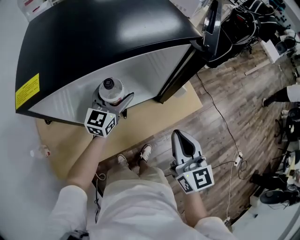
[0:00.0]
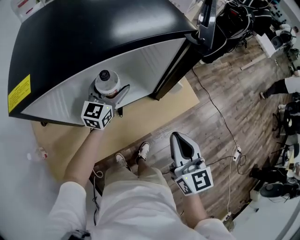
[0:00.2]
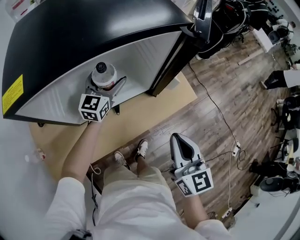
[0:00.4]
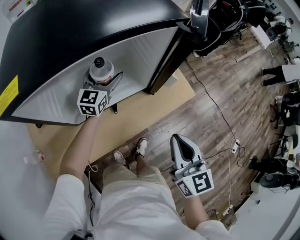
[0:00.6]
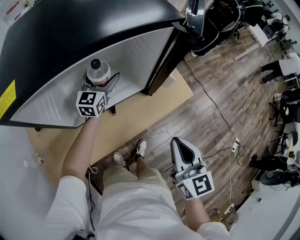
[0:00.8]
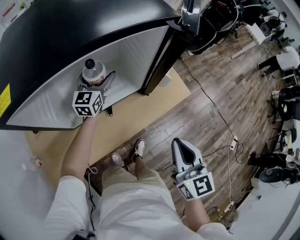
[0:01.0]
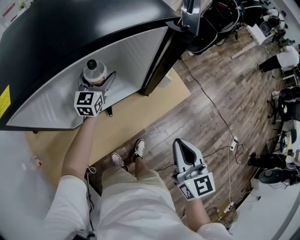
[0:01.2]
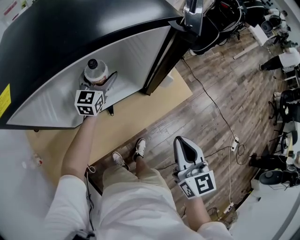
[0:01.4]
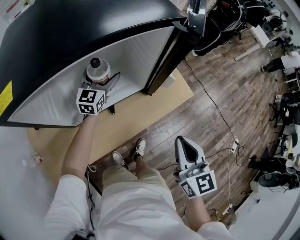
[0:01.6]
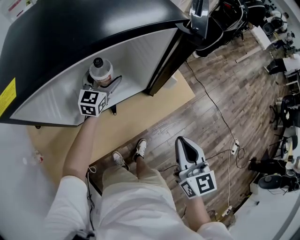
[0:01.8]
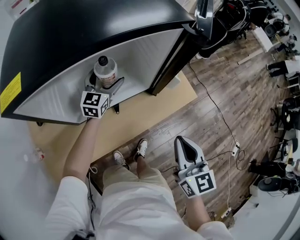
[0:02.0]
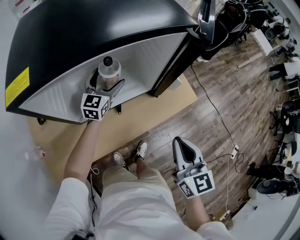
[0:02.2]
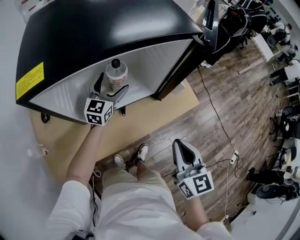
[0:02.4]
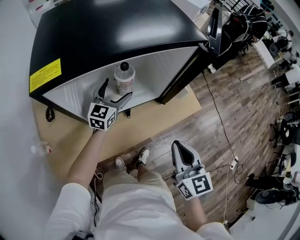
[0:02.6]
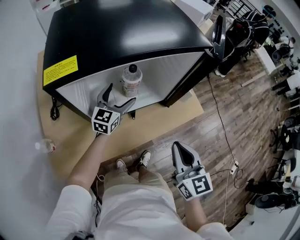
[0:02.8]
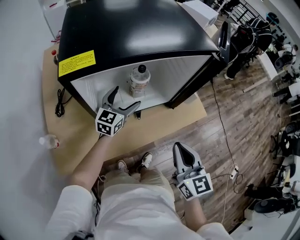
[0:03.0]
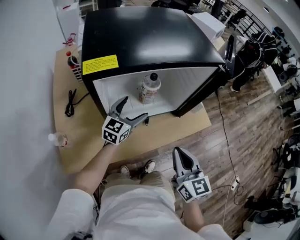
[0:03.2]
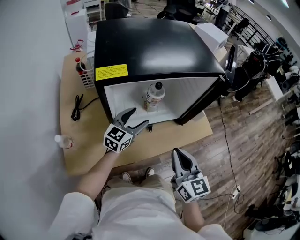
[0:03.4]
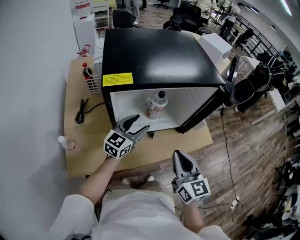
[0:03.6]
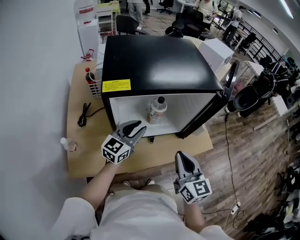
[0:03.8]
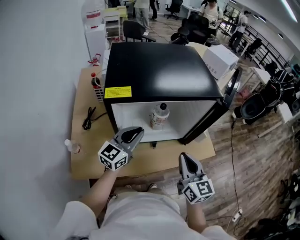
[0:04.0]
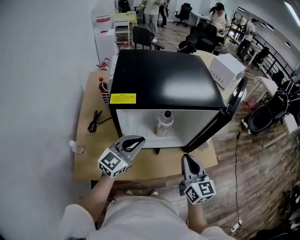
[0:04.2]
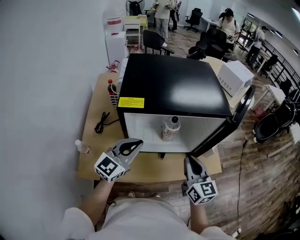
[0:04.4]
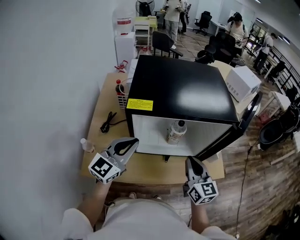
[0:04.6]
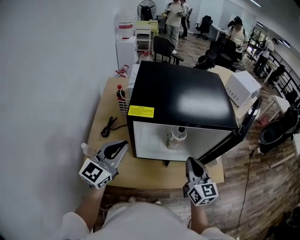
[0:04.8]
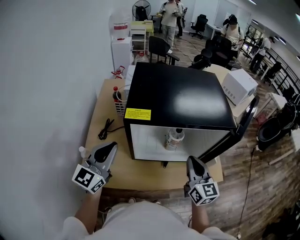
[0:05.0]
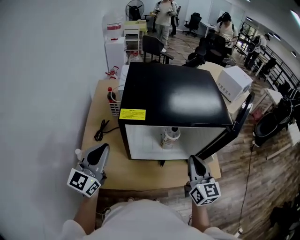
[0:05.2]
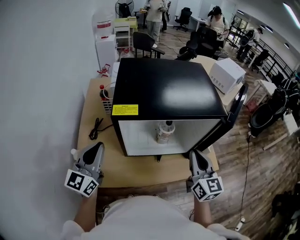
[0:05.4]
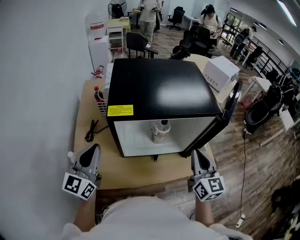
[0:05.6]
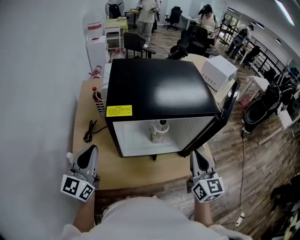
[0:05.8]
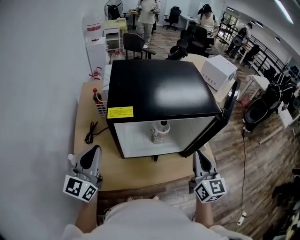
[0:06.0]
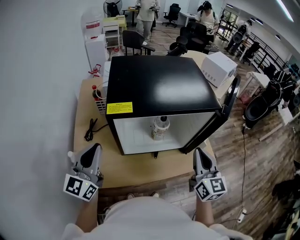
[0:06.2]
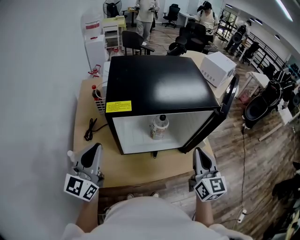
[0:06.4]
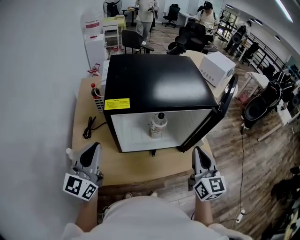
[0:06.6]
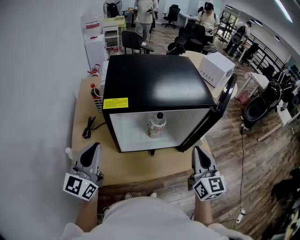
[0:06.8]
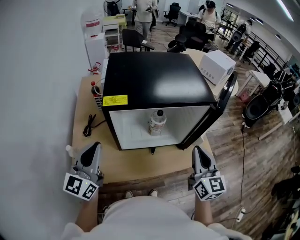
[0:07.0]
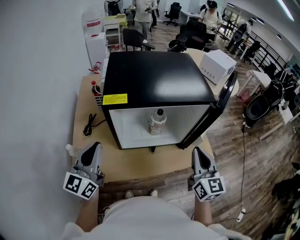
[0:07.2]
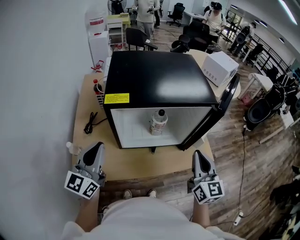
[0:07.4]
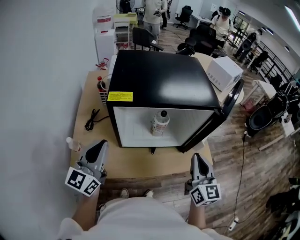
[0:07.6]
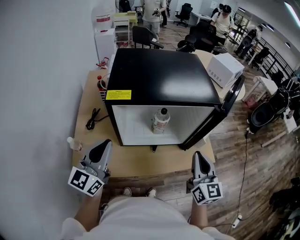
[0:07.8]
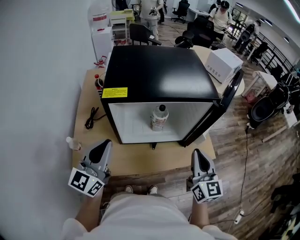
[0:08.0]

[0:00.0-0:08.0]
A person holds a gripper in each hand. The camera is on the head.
0:00.0 to 0:01.6: The left gripper goes roughly 10 cm forward. Meanwhile the right gripper moves to the right, about 5 cm.
0:01.6 to 0:03.2: The left gripper travels backward and to the left by roughly 15 cm. The right gripper is displaced to the left by roughly 10 cm.
0:03.2 to 0:04.8: The right gripper shifts roughly 15 cm forward and upward, while the left gripper travels upward, to the left and backward by approximately 25 cm, changes its angle by approximately 20 degrees, and closes its fingers.
0:04.8 to 0:06.4: The right gripper travels to the right and upward by about 10 cm.
0:06.4 to 0:08.0: The left gripper heads to the right, covering roughly 5 cm.

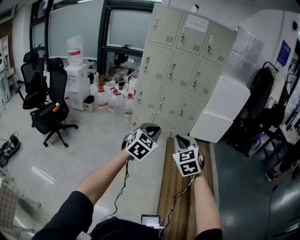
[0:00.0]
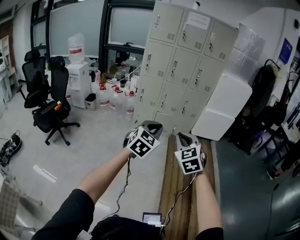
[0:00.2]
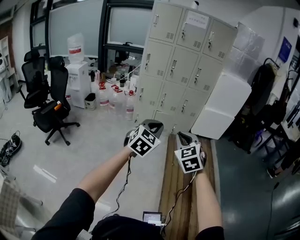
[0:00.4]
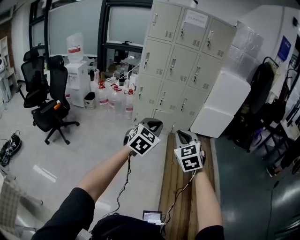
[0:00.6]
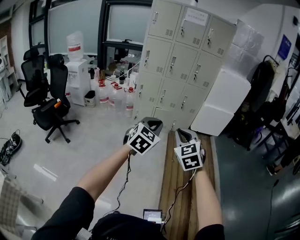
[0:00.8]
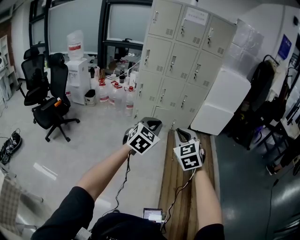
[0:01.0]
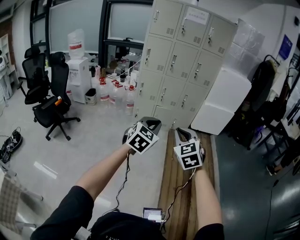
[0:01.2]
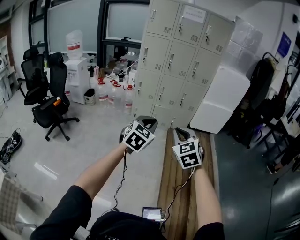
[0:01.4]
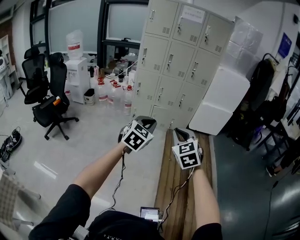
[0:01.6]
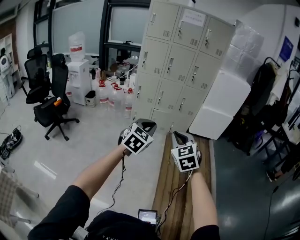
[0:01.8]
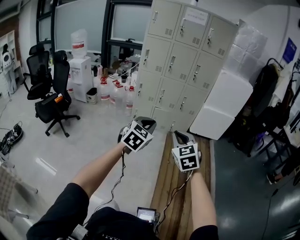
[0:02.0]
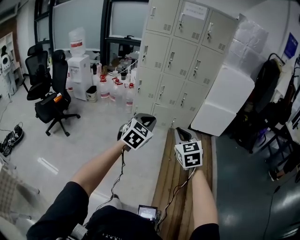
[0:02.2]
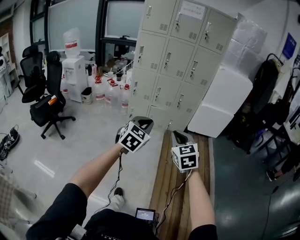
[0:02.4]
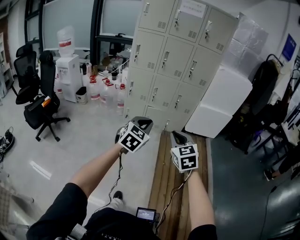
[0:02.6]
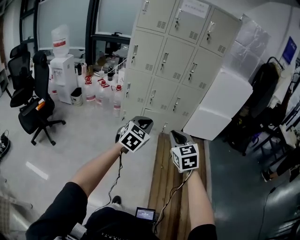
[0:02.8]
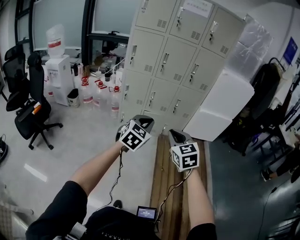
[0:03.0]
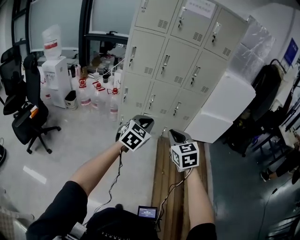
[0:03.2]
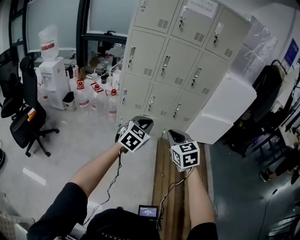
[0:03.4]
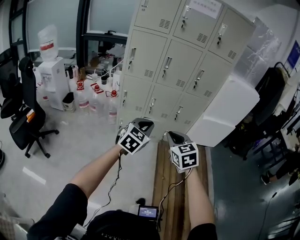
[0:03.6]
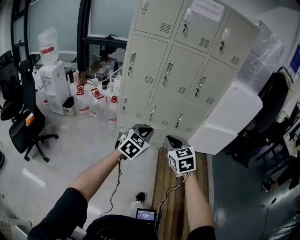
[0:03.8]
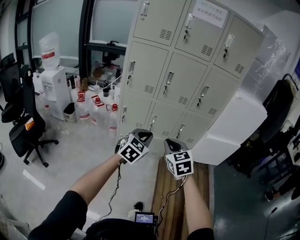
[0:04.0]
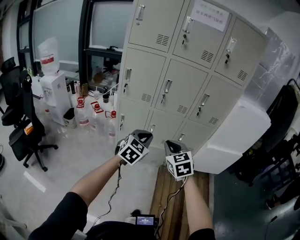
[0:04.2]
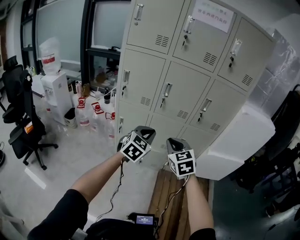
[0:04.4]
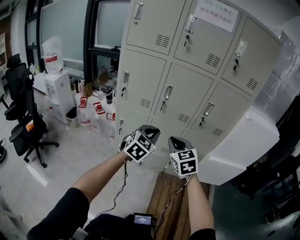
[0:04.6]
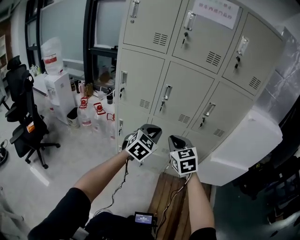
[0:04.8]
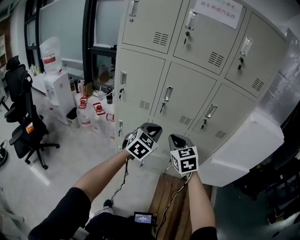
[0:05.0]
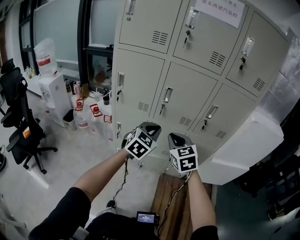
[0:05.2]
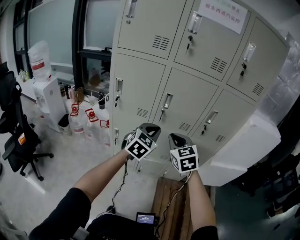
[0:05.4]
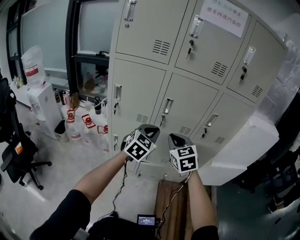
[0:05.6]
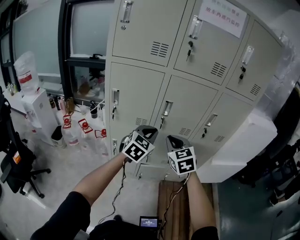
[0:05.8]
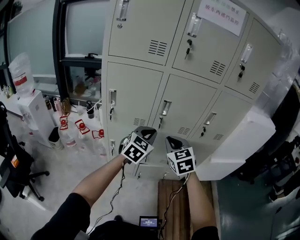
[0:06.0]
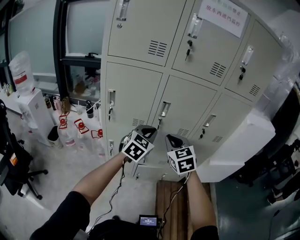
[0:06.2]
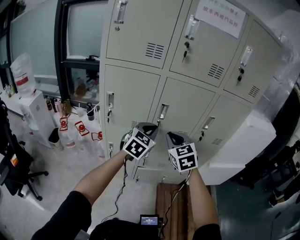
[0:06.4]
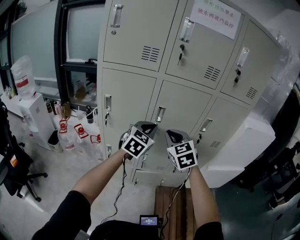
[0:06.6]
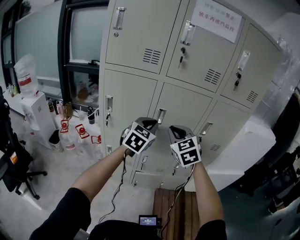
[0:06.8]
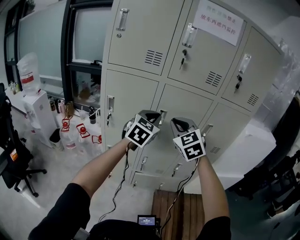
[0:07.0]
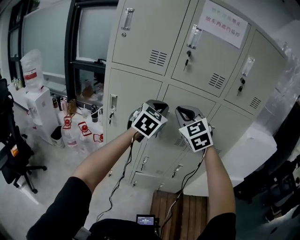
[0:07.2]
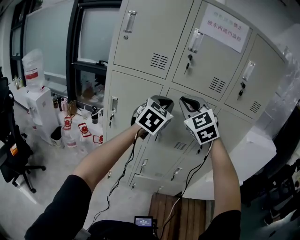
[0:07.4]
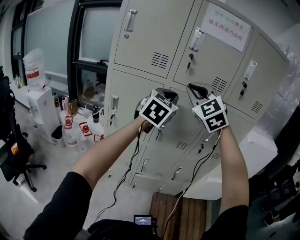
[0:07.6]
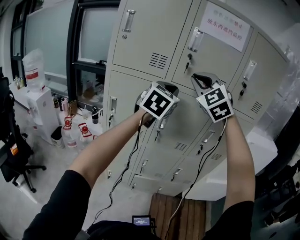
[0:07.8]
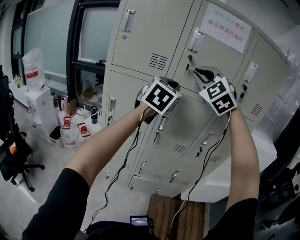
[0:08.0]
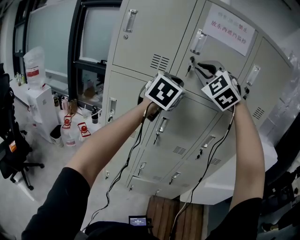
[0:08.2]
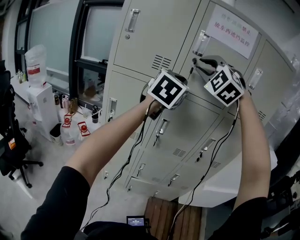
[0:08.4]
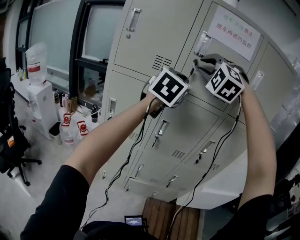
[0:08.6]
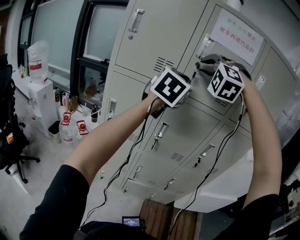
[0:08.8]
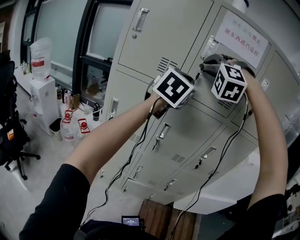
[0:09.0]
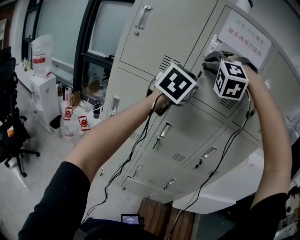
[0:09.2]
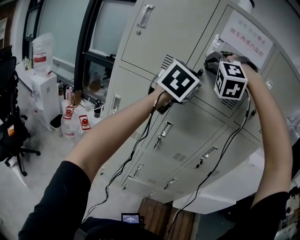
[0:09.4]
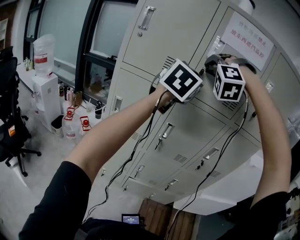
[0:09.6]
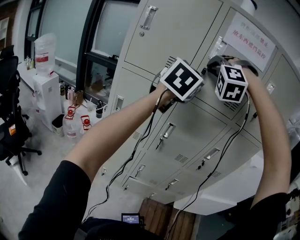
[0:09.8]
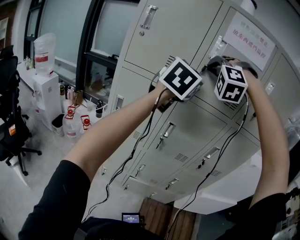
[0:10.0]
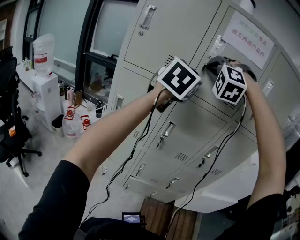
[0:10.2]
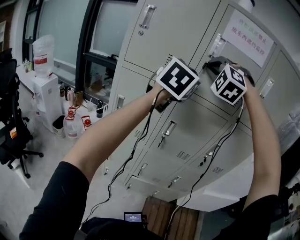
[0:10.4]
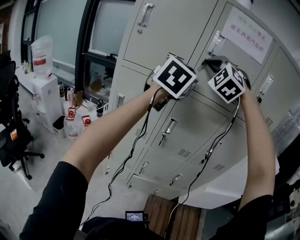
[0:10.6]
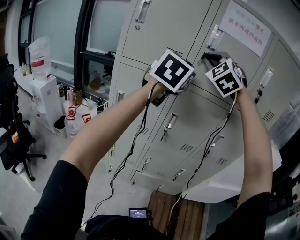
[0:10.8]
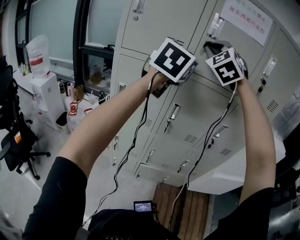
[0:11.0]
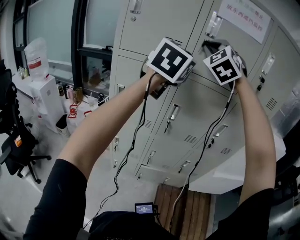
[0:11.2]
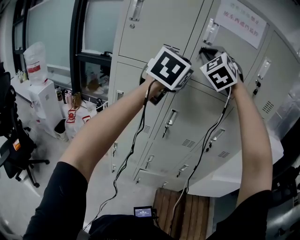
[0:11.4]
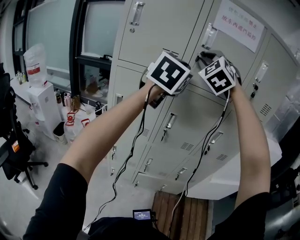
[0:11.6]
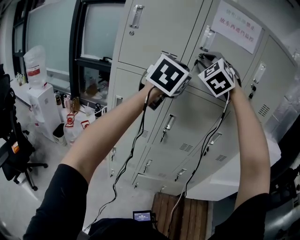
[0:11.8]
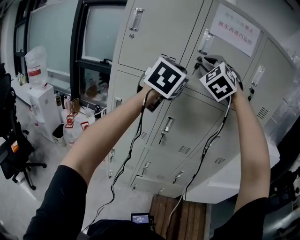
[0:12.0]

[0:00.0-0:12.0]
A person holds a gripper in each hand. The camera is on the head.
0:00.0 to 0:01.6: The right gripper travels to the right by roughly 5 cm.
0:01.6 to 0:03.0: The two grippers go approximately 30 cm forward.
0:03.0 to 0:04.4: The two grippers travel together, forward, some 40 cm.
0:04.4 to 0:06.0: Both grippers move forward, some 20 cm.
0:06.0 to 0:07.6: Both grippers move upward, some 25 cm. The right gripper turns by roughly 40 degrees.
0:07.6 to 0:09.0: The right gripper heads upward and forward, covering about 15 cm, and twists approximately 50 degrees counterclockwise, seen from behind, while the left gripper moves upward, approximately 10 cm.
0:09.0 to 0:10.4: The grippers stay close to where they were, moving slightly.
0:10.4 to 0:12.0: The right gripper swivels approximately 30 degrees.

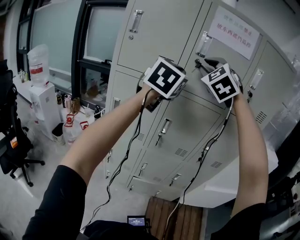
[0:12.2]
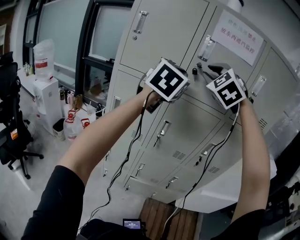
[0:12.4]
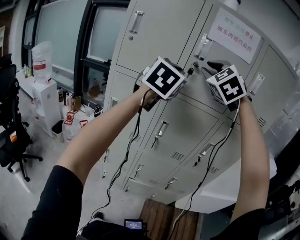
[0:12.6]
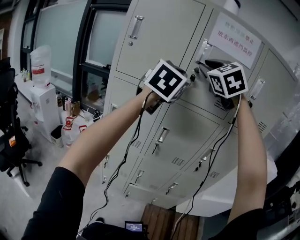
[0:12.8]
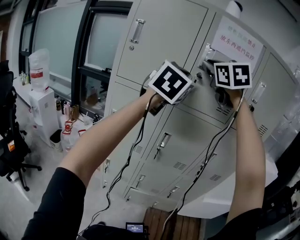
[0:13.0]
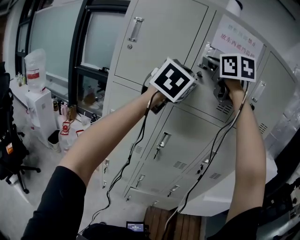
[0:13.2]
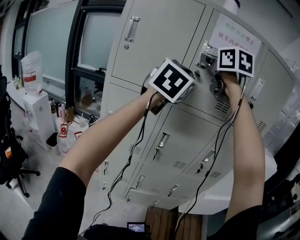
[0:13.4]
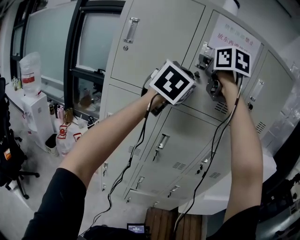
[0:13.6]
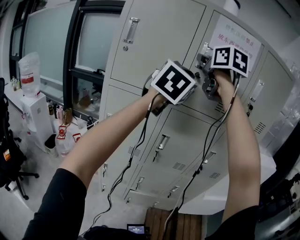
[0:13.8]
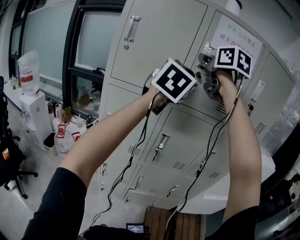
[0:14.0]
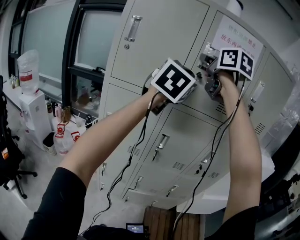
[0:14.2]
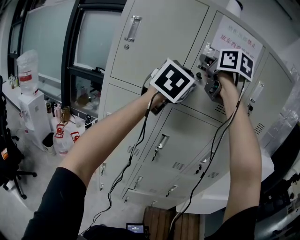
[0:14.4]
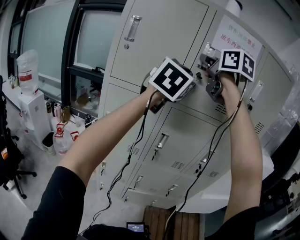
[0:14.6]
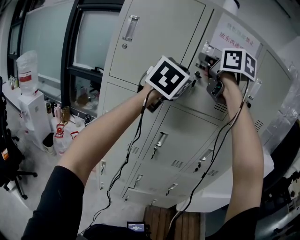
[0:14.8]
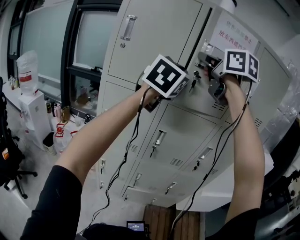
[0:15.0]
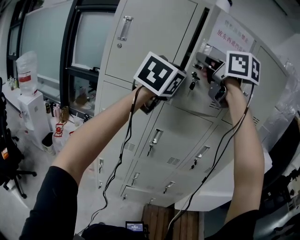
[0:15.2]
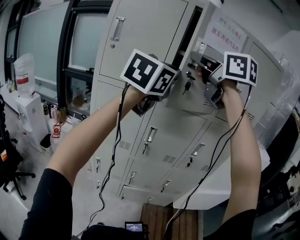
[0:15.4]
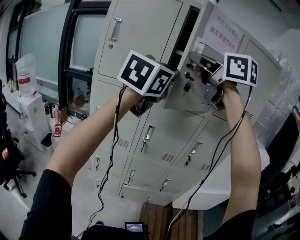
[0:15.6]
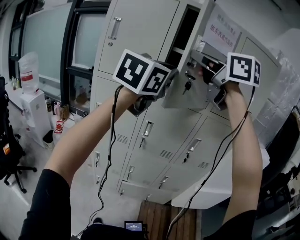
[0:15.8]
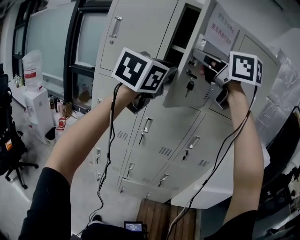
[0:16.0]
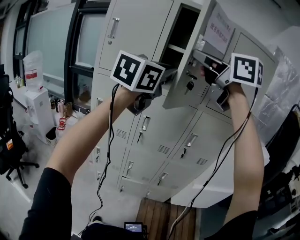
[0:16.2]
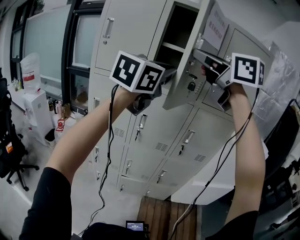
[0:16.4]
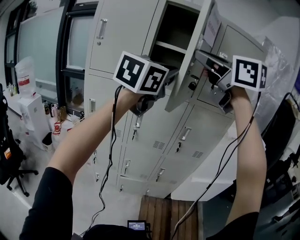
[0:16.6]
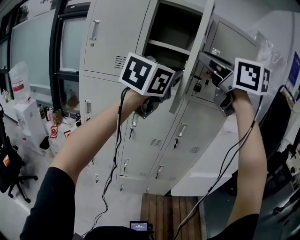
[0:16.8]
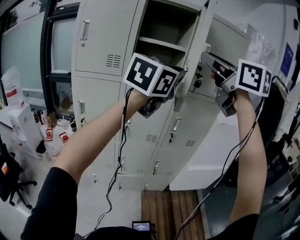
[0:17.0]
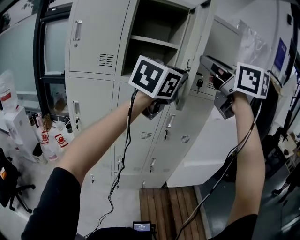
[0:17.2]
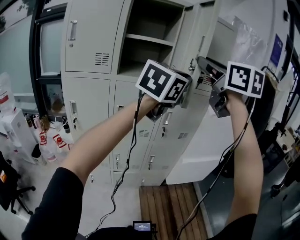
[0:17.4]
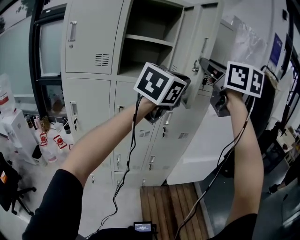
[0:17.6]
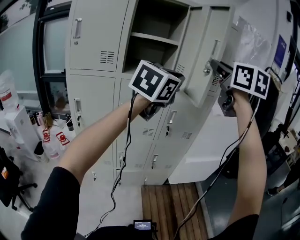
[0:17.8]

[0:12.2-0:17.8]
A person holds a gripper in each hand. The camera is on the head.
0:12.2 to 0:13.6: The left gripper changes place by about 5 cm. Meanwhile the right gripper heads upward and forward, covering roughly 10 cm, and rolls clockwise, seen from behind, by roughly 60 degrees.
0:13.6 to 0:15.0: The grippers stay close to where they were, moving slightly.
0:15.0 to 0:16.4: Both grippers move backward and to the right, about 20 cm.
0:16.4 to 0:17.8: The two grippers go roughly 15 cm to the right. The right gripper turns by approximately 40 degrees.
